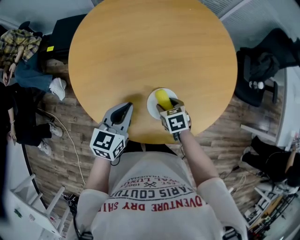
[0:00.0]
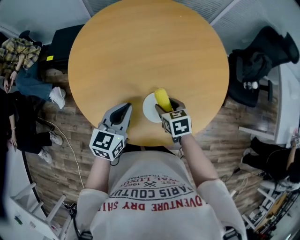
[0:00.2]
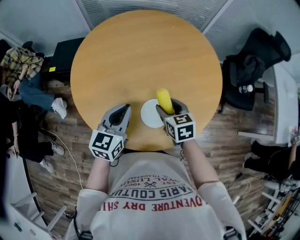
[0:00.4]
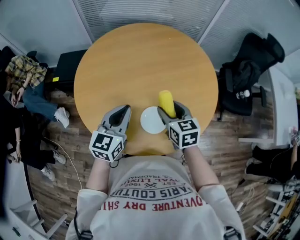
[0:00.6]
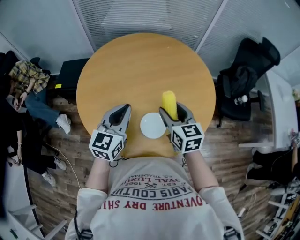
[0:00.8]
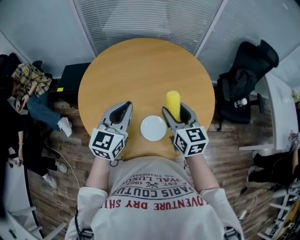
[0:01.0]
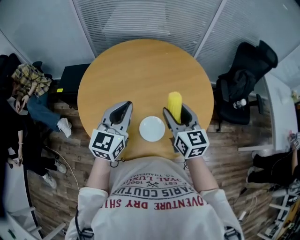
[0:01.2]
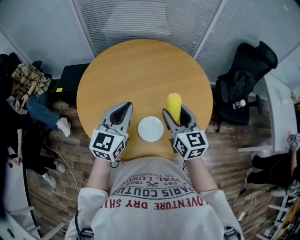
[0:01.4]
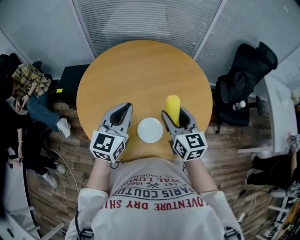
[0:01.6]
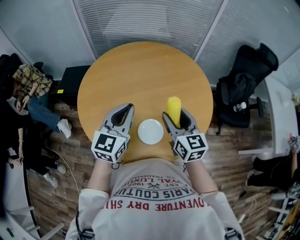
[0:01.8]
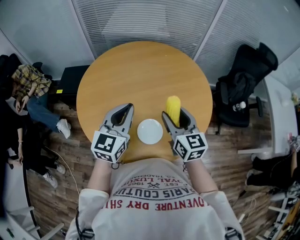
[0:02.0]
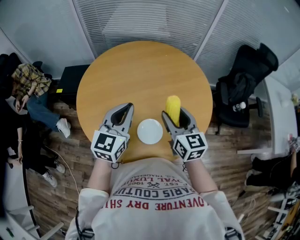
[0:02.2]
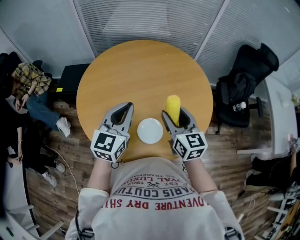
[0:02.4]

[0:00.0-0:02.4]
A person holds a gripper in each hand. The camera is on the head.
0:00.0 to 0:01.2: The left gripper heads upward, covering about 20 cm, and swivels some 30 degrees. Meanwhile the right gripper travels upward by about 30 cm, and tips its fingers upward by some 50 degrees.
0:01.2 to 0:02.4: The grippers stay close to where they were, moving slightly.

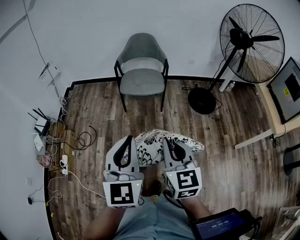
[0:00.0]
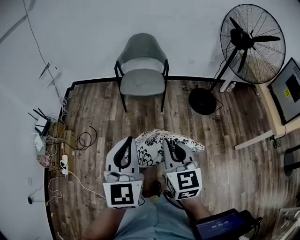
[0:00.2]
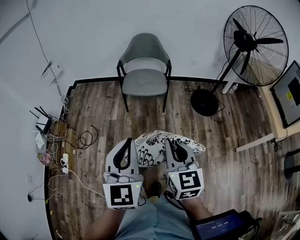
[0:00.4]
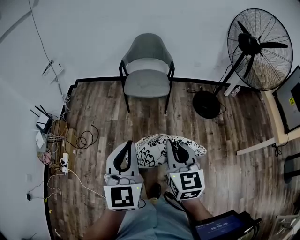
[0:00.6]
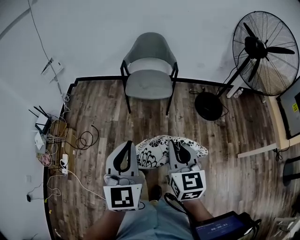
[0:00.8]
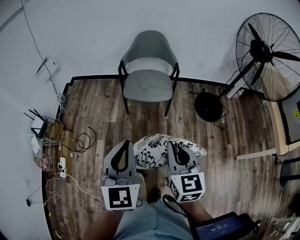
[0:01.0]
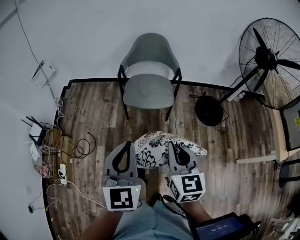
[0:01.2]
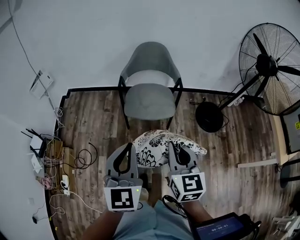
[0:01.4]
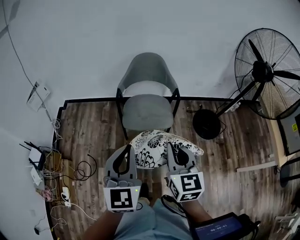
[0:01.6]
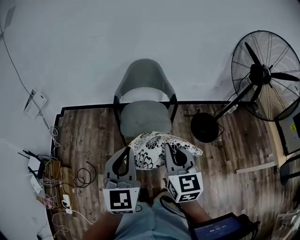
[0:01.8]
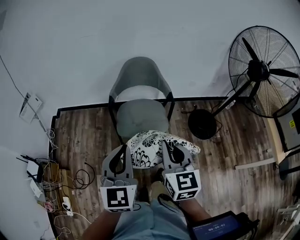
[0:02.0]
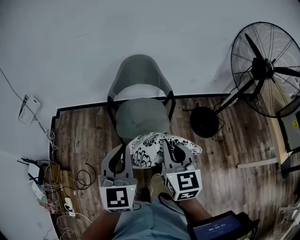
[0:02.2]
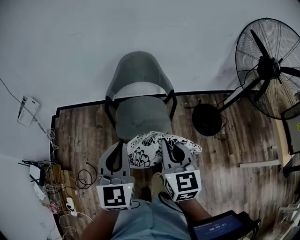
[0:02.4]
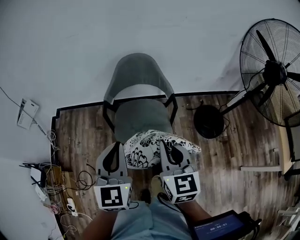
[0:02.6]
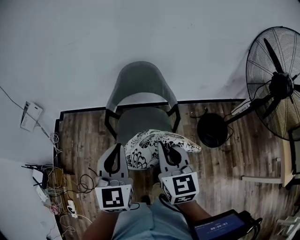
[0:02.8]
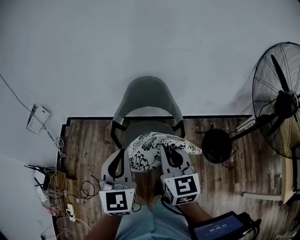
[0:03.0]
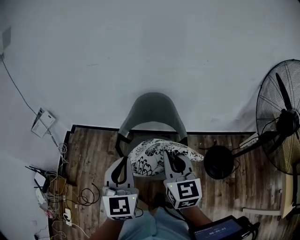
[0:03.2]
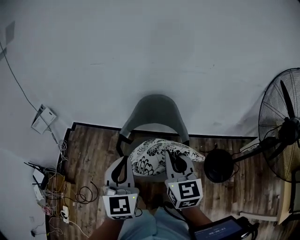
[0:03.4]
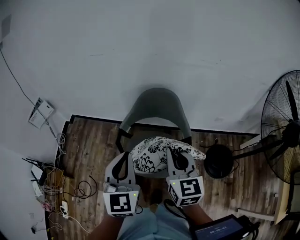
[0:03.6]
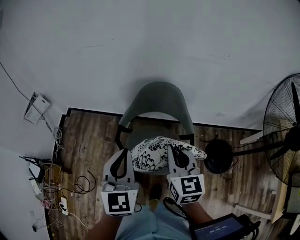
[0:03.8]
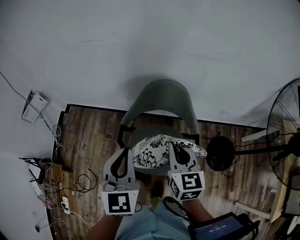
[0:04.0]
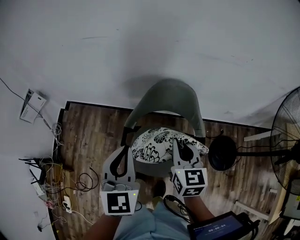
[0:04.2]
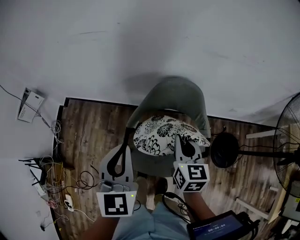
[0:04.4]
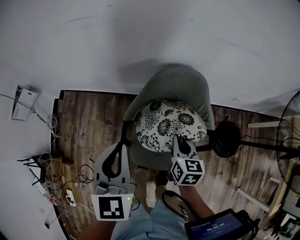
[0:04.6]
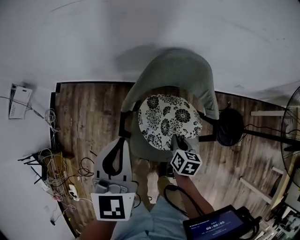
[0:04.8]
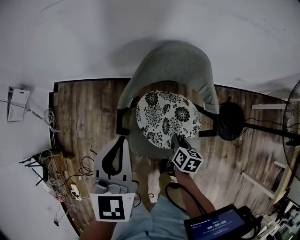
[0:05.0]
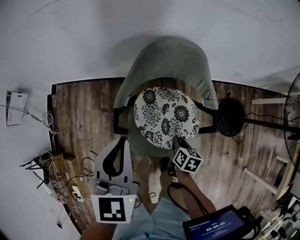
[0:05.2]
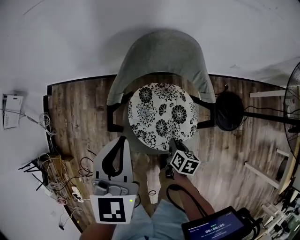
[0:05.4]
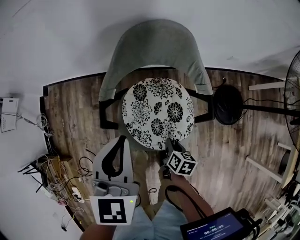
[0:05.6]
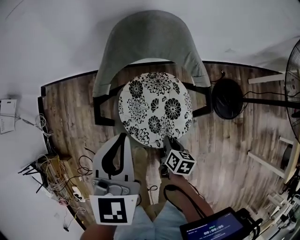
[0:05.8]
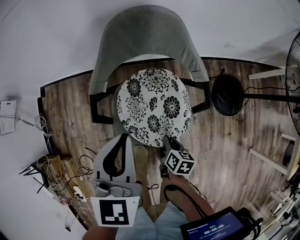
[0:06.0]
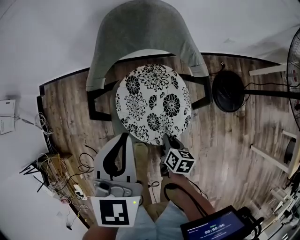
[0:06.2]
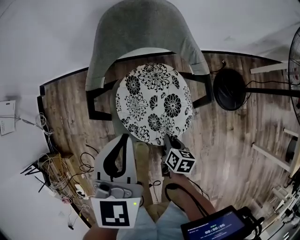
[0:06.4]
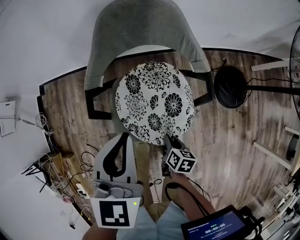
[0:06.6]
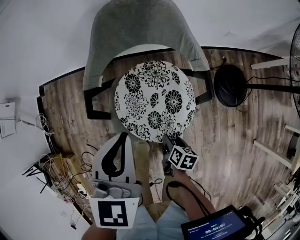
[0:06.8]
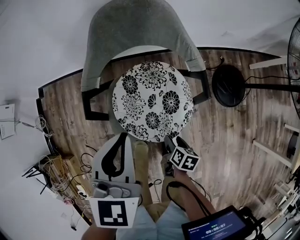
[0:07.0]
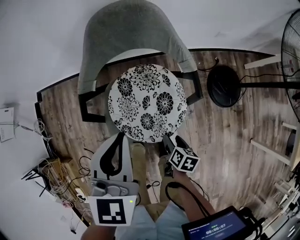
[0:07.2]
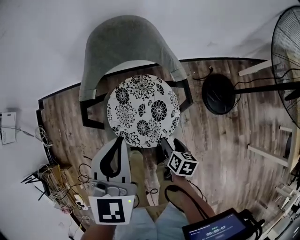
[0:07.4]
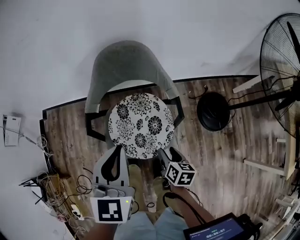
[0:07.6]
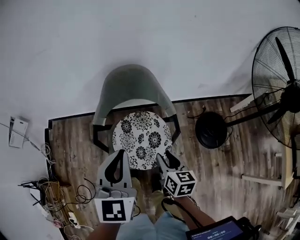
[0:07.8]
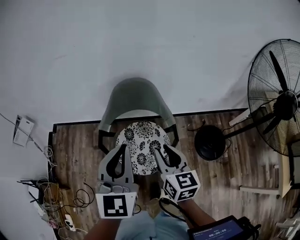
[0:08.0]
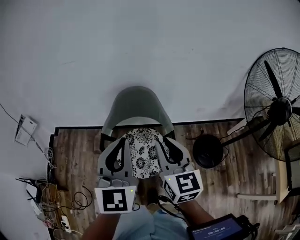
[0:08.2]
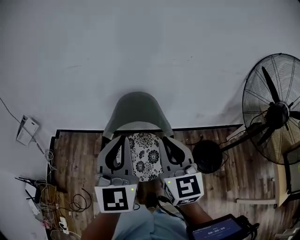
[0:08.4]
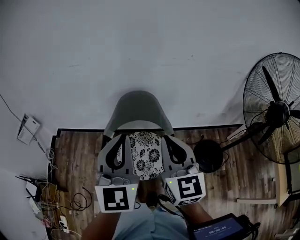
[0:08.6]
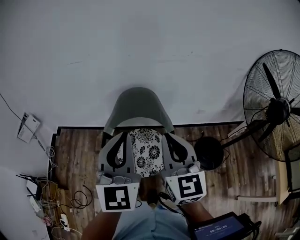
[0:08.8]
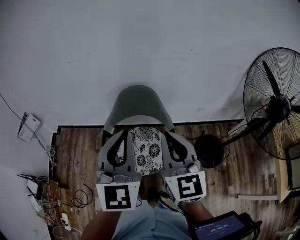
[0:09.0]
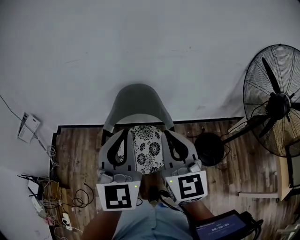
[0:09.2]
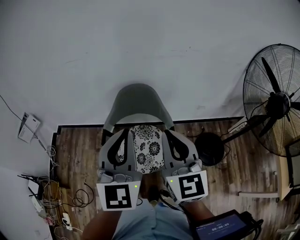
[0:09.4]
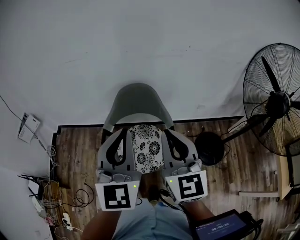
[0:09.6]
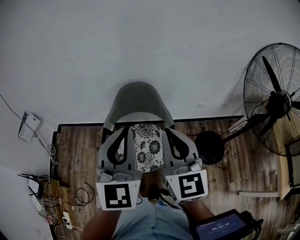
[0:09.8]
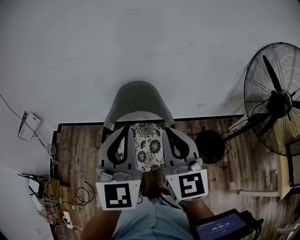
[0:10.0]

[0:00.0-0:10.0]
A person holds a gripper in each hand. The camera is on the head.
0:00.0 to 0:01.4: The two grippers go approximately 25 cm forward.
0:01.4 to 0:02.8: Both grippers move forward, approximately 30 cm.
0:02.8 to 0:04.2: Both grippers move forward, about 20 cm.
0:04.2 to 0:05.8: The left gripper moves downward and to the right, roughly 15 cm. The right gripper heads downward and backward, covering about 40 cm, and rotates around the line of its fingers by roughly 40 degrees, clockwise from behind.
0:05.8 to 0:07.2: The right gripper is displaced to the right by some 5 cm, and opens its fingers.
0:07.2 to 0:08.6: The left gripper heads upward, covering approximately 30 cm, and tilts its fingers approximately 30 degrees upward; the right gripper travels upward by about 50 cm, tips its fingers upward by roughly 50 degrees, and closes its fingers.
0:08.6 to 0:10.0: The grippers stay close to where they were, moving slightly.

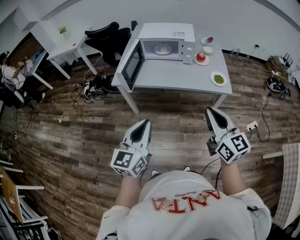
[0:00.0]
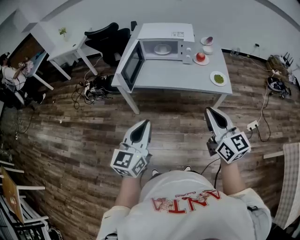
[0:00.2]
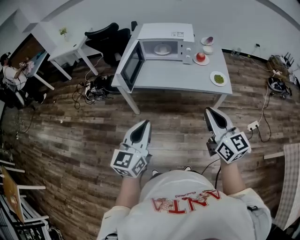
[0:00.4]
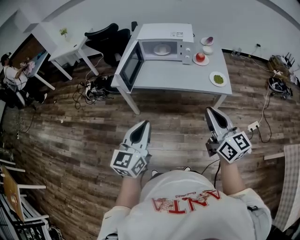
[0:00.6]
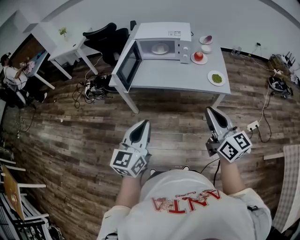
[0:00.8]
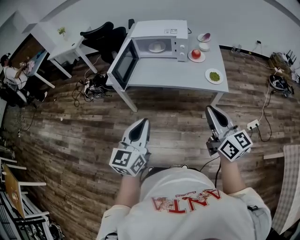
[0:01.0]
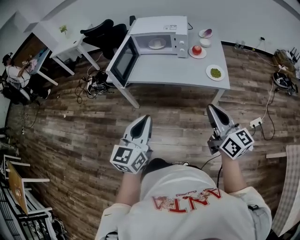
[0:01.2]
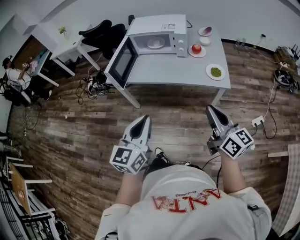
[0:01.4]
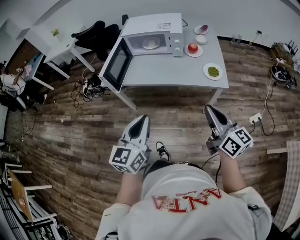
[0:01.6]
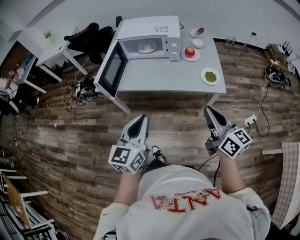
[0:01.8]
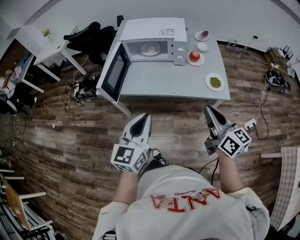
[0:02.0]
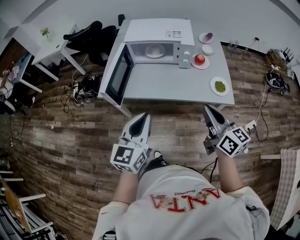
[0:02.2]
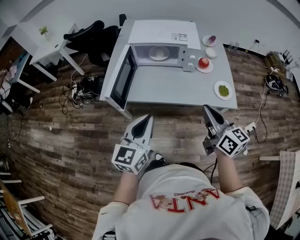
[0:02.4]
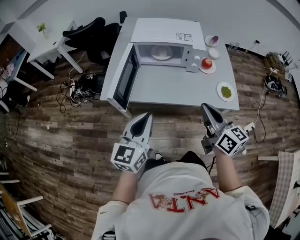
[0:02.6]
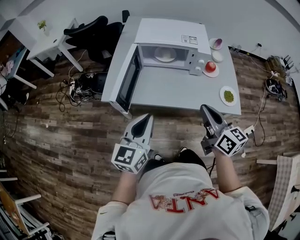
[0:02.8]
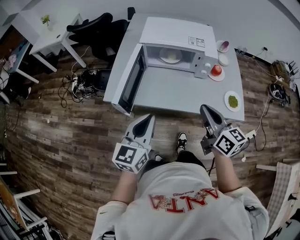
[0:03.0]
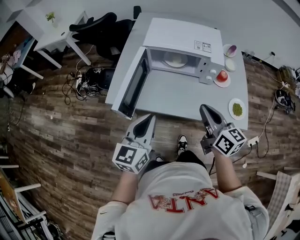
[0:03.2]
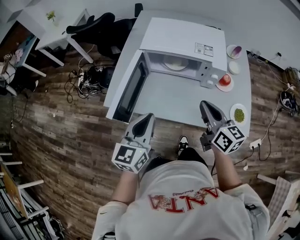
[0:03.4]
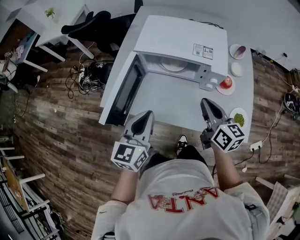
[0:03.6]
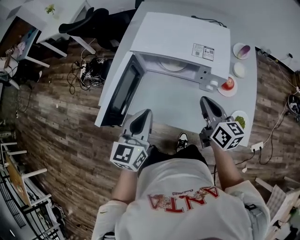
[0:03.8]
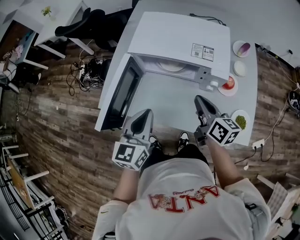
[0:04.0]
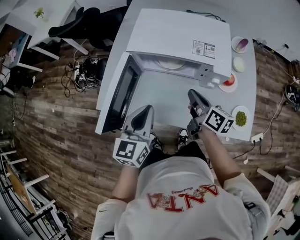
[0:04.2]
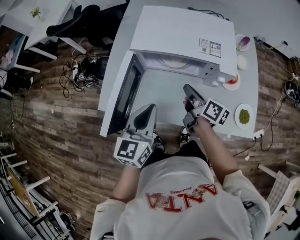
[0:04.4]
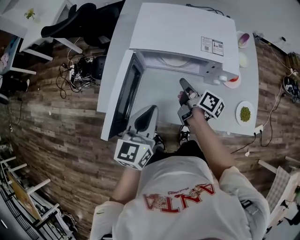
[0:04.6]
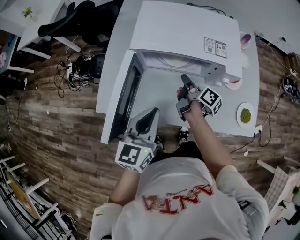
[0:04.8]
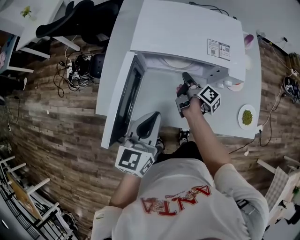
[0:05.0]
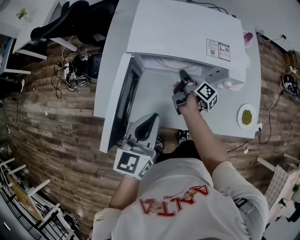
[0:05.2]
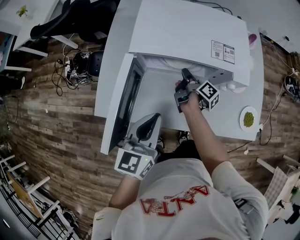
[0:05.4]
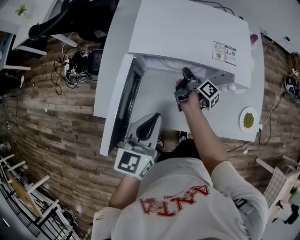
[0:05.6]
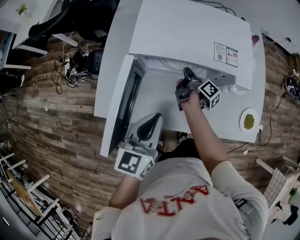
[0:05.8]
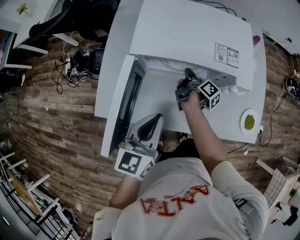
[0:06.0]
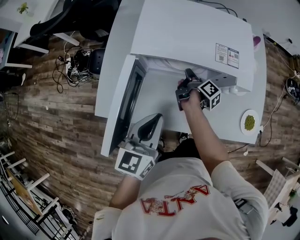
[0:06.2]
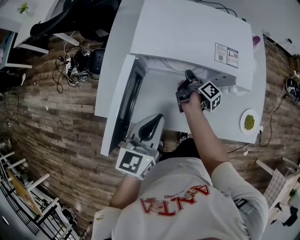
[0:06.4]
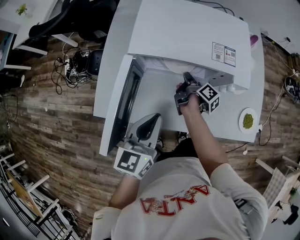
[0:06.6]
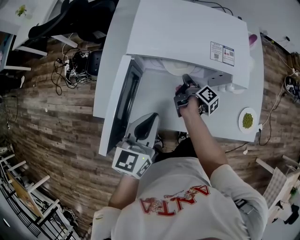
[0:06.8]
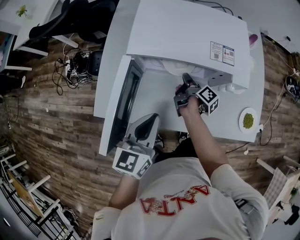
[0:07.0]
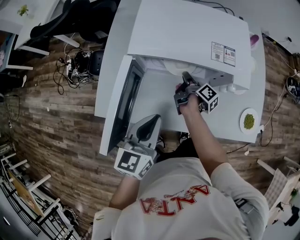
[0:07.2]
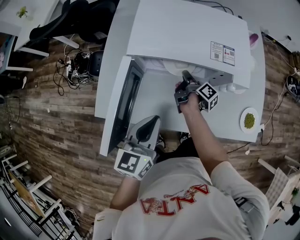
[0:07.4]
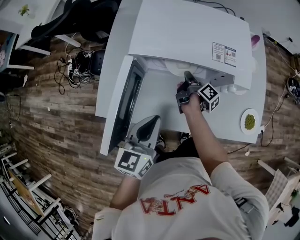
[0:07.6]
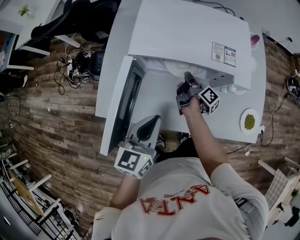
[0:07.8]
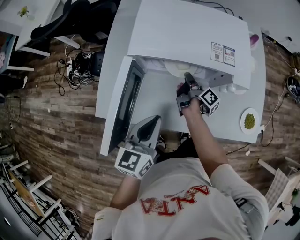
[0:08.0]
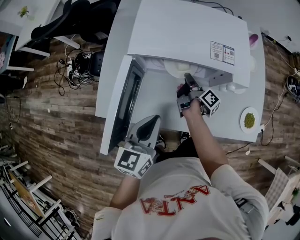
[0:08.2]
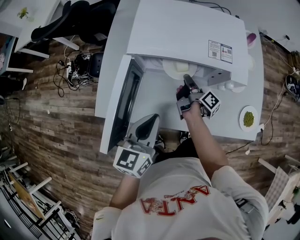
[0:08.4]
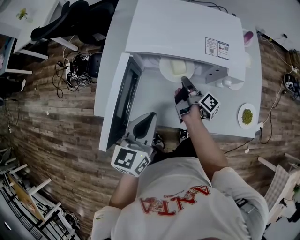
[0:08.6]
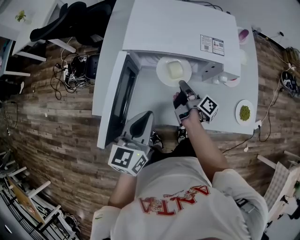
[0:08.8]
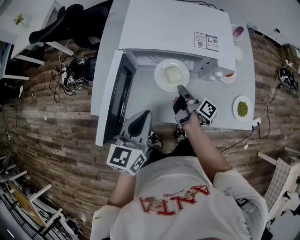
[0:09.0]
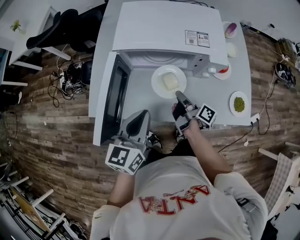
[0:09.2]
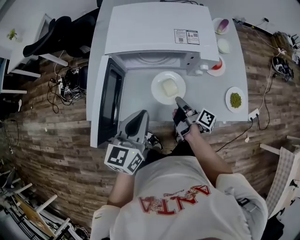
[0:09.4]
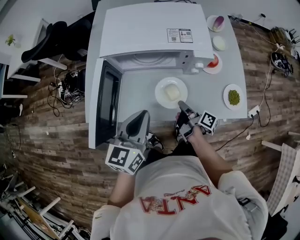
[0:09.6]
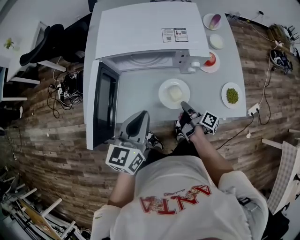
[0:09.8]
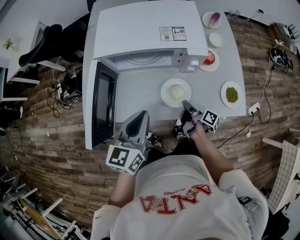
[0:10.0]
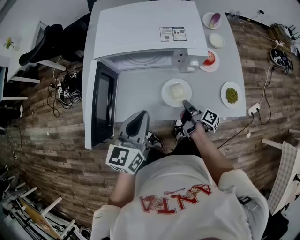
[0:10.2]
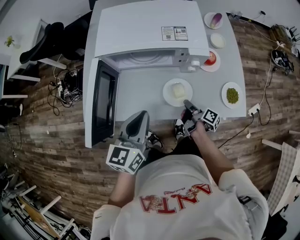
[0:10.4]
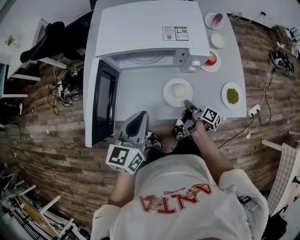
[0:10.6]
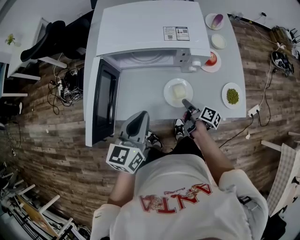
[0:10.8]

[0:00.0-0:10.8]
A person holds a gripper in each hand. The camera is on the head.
0:00.0 to 0:01.6: The right gripper heads to the right, forward and downward, covering some 15 cm. The left gripper moves to the right and forward, roughly 10 cm.
0:01.6 to 0:03.0: The grippers both shift forward and to the left by some 30 cm.
0:03.0 to 0:04.6: The right gripper heads forward and downward, covering about 30 cm, and twists approximately 50 degrees clockwise, seen from behind. Meanwhile the left gripper moves forward, approximately 20 cm.
0:04.6 to 0:06.2: The right gripper shifts approximately 15 cm downward and forward, and swivels about 30 degrees.
0:06.2 to 0:07.8: The grippers move only a little.
0:07.8 to 0:09.2: The right gripper heads backward, covering some 15 cm.
0:09.2 to 0:10.8: The right gripper travels to the right, downward and backward by some 15 cm, and opens its fingers. The left gripper shifts by roughly 5 cm.
